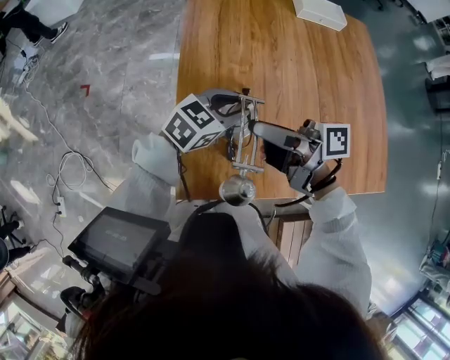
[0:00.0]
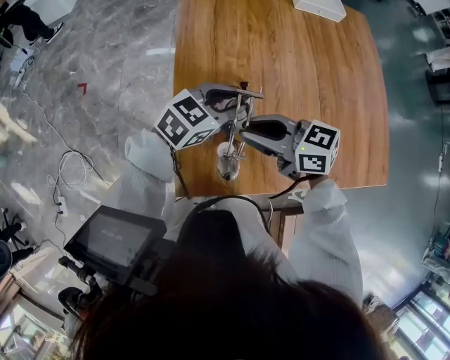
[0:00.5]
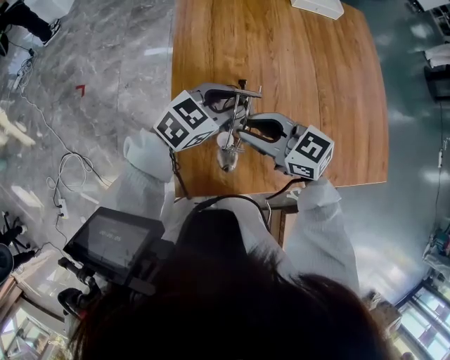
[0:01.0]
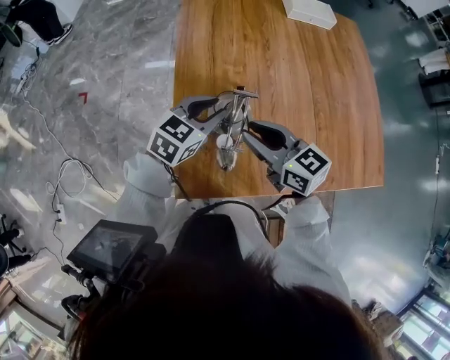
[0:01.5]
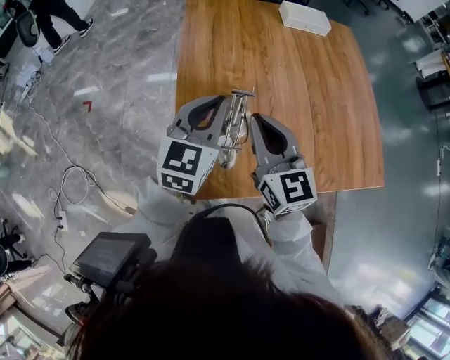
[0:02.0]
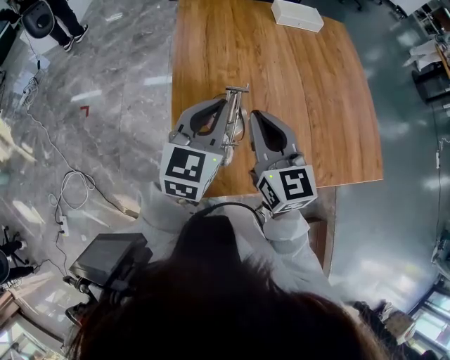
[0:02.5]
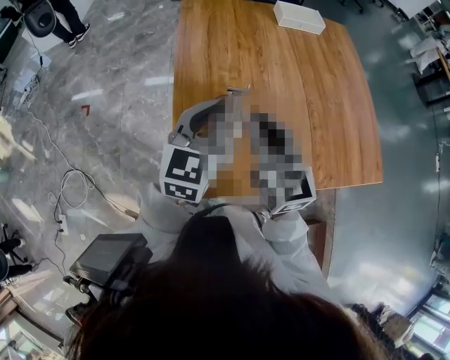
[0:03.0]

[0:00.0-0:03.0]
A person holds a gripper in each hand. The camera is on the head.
0:00.0 to 0:01.5: The right gripper moves downward, approximately 5 cm, and rolls counterclockwise, seen from behind, by about 50 degrees.
0:01.5 to 0:03.0: Both grippers travel together upward, roughly 10 cm. The left gripper swivels about 30 degrees, and closes up. The right gripper turns by approximately 30 degrees, and closes.

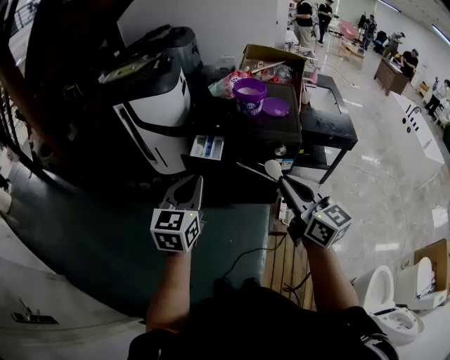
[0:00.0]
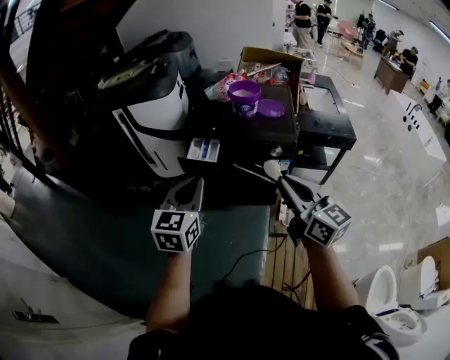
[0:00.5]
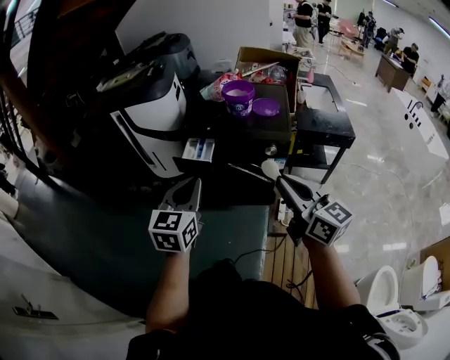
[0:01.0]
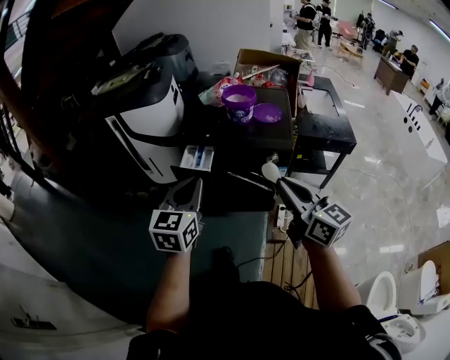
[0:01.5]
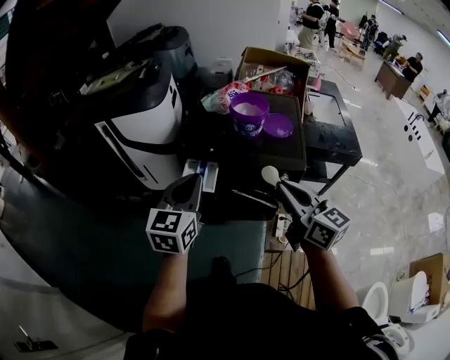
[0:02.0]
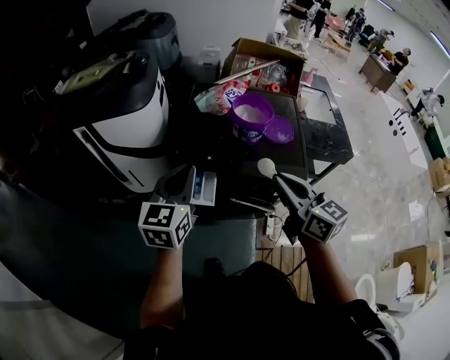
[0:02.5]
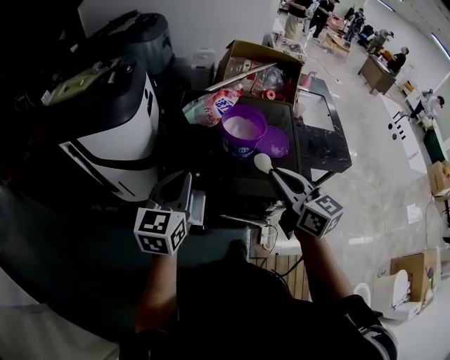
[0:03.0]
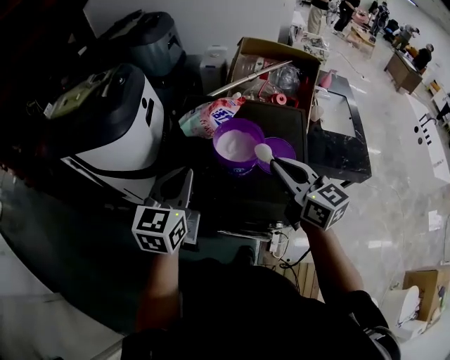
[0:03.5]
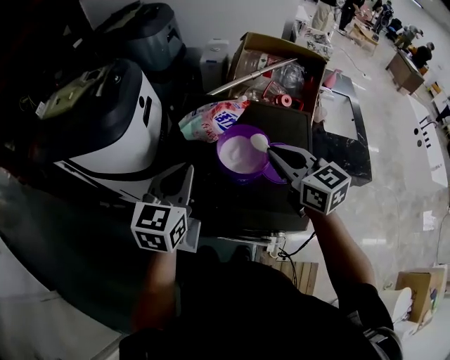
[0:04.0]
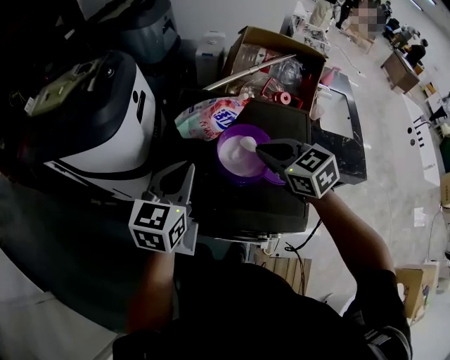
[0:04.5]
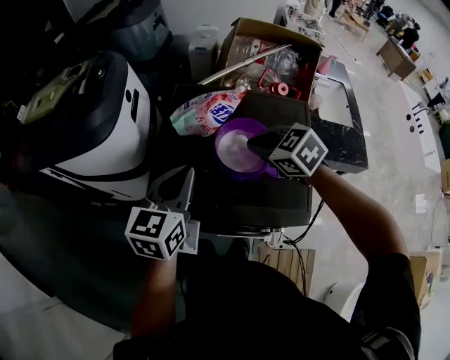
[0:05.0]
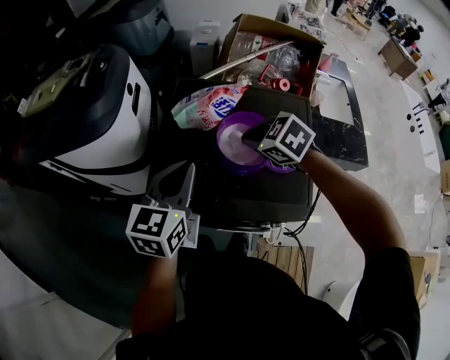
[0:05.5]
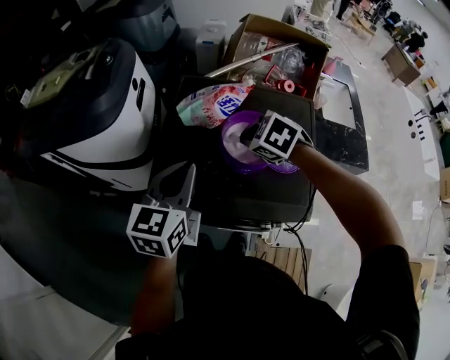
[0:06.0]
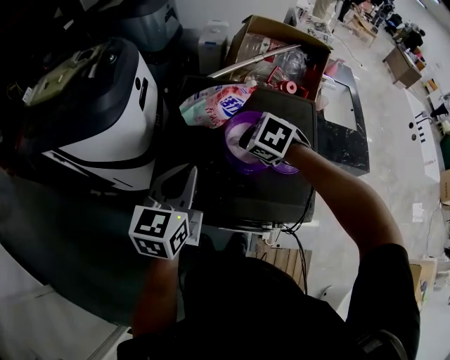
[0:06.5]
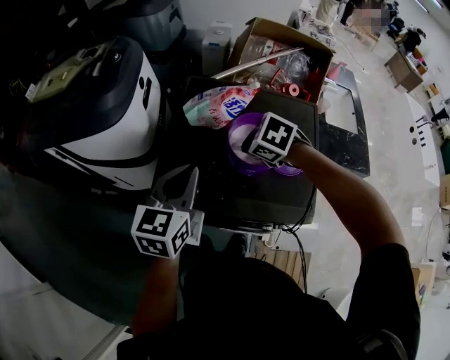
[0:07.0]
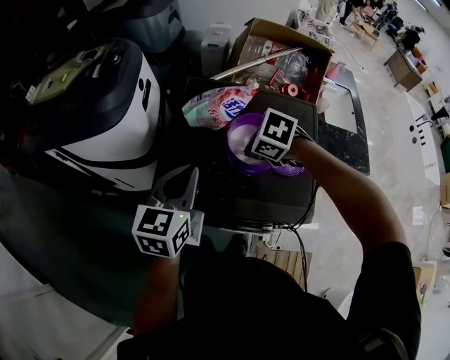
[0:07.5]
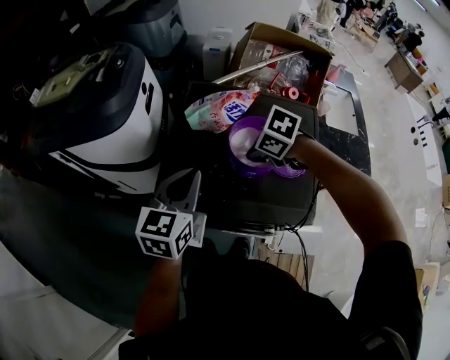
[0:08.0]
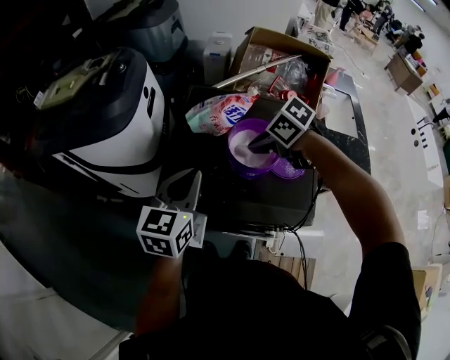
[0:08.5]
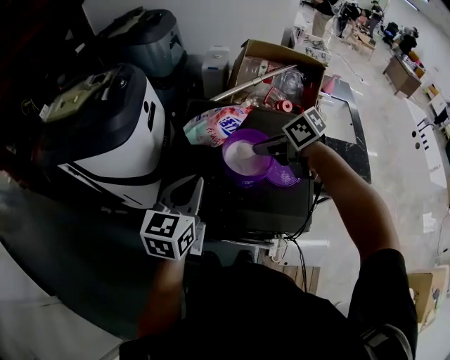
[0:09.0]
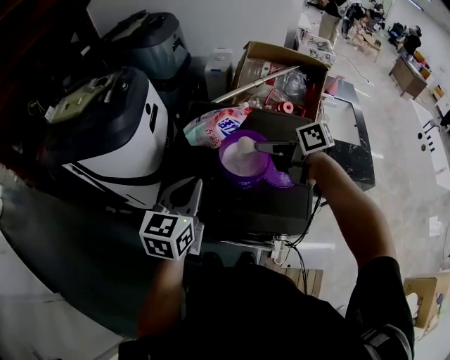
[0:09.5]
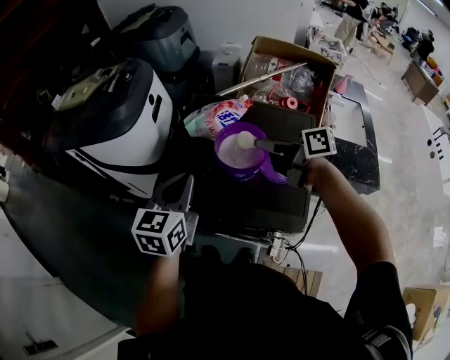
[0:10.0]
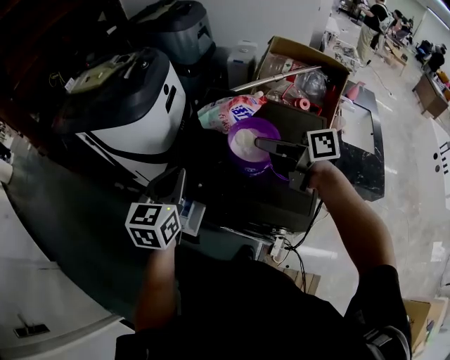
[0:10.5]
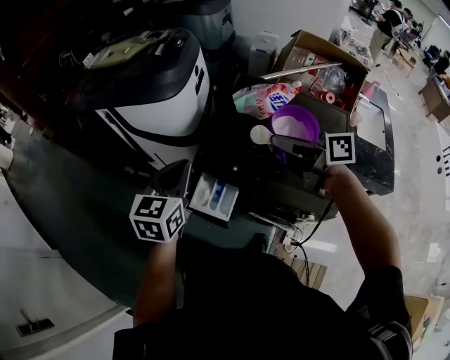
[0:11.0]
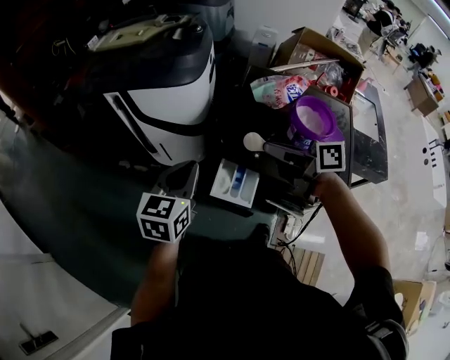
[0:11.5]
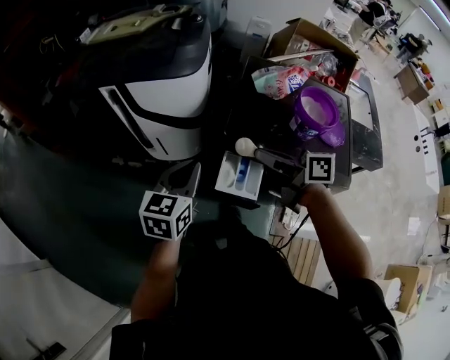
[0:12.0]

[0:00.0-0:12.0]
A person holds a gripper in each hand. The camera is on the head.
0:00.0 to 0:02.0: The grippers both shift forward by roughly 20 cm.
0:02.0 to 0:04.0: Both grippers travel together forward, roughly 35 cm.
0:04.0 to 0:06.0: The right gripper heads downward, forward and to the left, covering approximately 15 cm, and angles its fingers downward, by approximately 50 degrees.
0:06.0 to 0:08.0: The right gripper changes its angle by about 20 degrees.
0:08.0 to 0:10.0: The right gripper moves upward and to the right, approximately 10 cm, and tips its fingers upward by some 50 degrees. Meanwhile the left gripper changes place by approximately 5 cm.
0:10.0 to 0:12.0: Both grippers travel together to the left, about 30 cm.

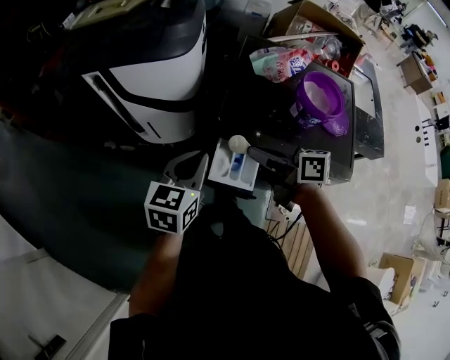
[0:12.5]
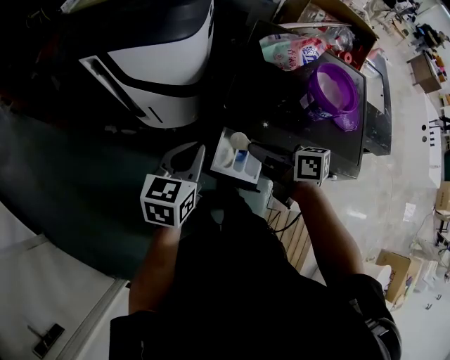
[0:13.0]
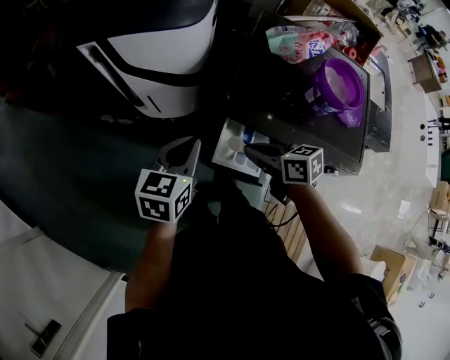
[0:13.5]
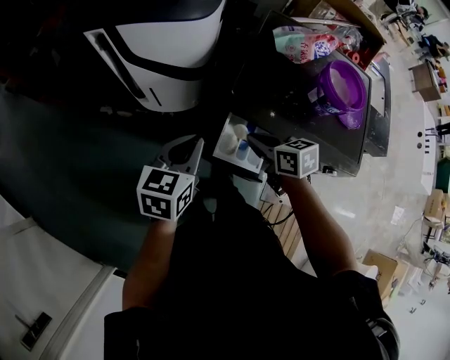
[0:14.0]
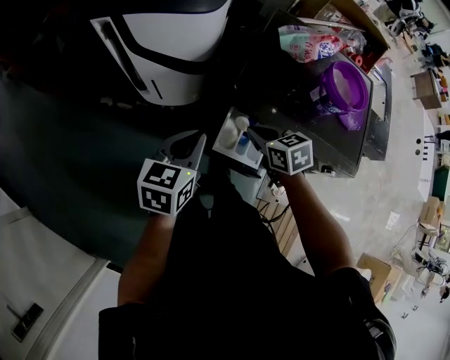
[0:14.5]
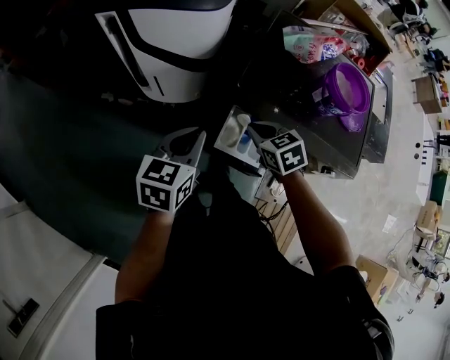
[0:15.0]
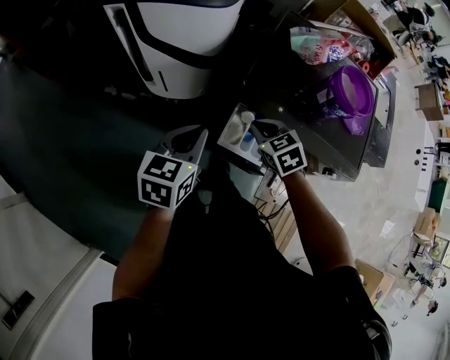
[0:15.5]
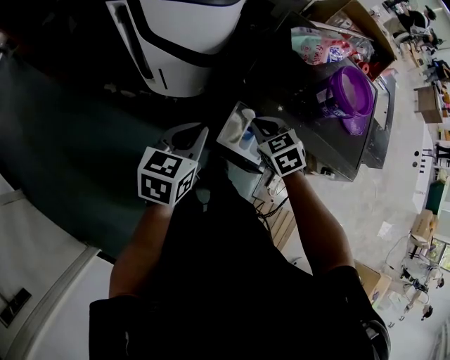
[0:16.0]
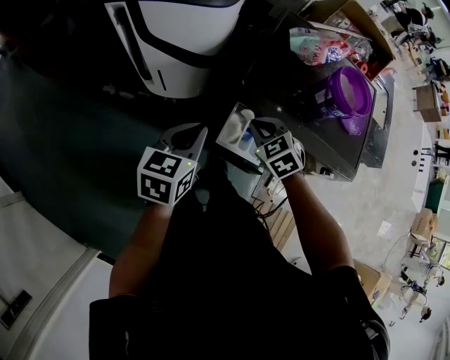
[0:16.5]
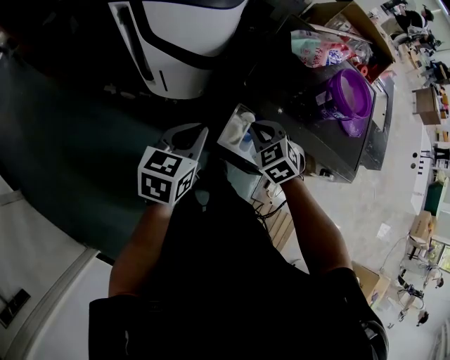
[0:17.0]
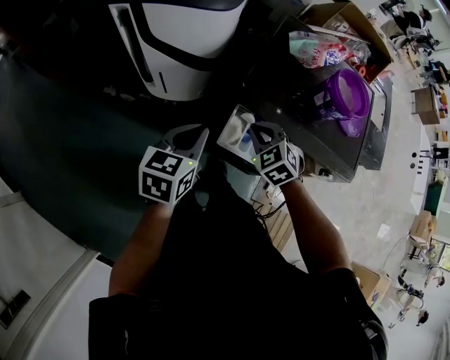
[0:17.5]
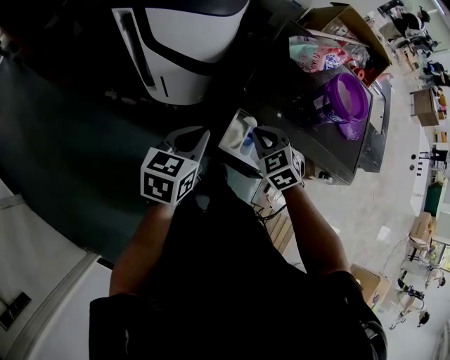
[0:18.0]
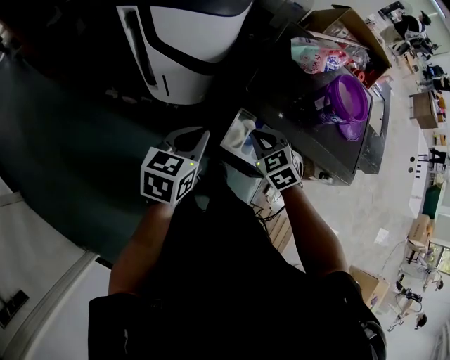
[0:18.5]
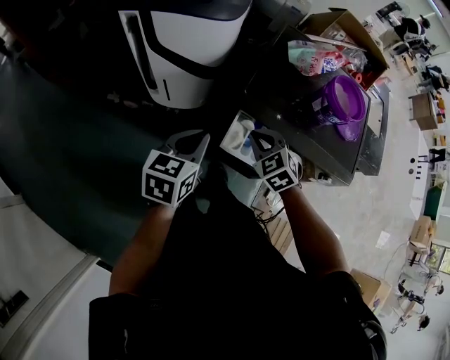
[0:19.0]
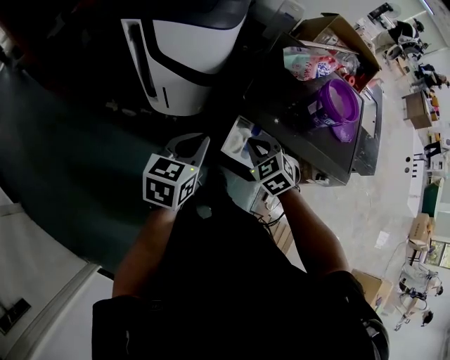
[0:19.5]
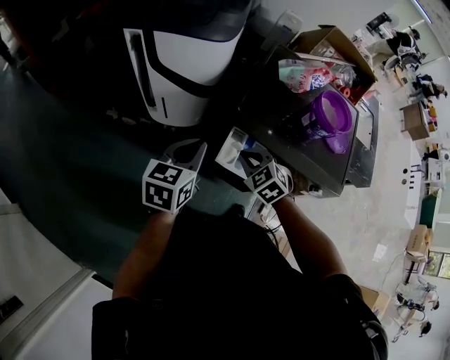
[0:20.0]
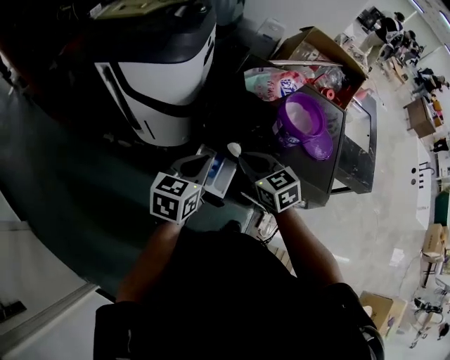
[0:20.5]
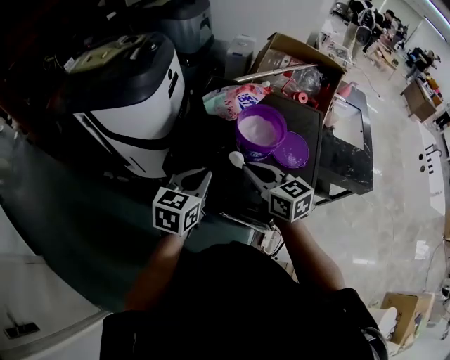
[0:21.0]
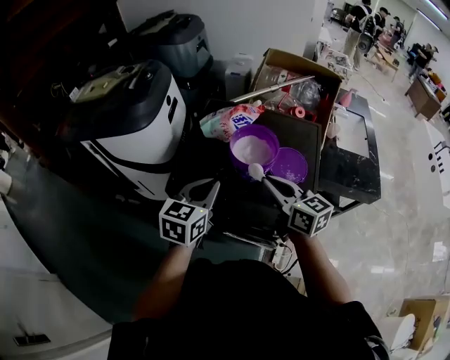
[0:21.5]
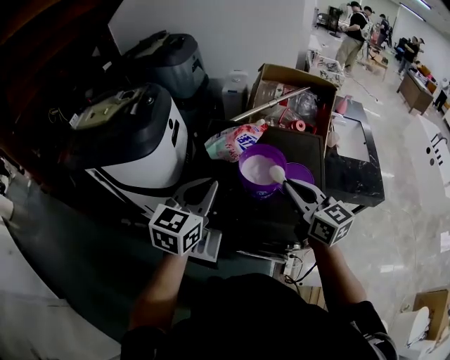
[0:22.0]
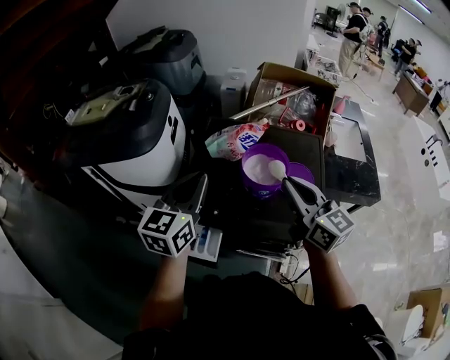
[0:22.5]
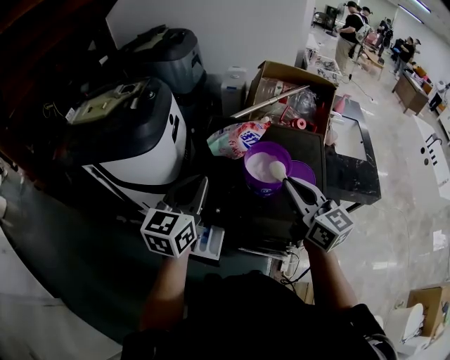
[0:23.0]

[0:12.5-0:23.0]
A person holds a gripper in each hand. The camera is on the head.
0:12.5 to 0:14.5: The right gripper shifts approximately 15 cm downward, and angles its fingers downward, by roughly 30 degrees. Meanwhile the left gripper shifts about 5 cm downward.
0:14.5 to 0:16.5: The right gripper turns by some 30 degrees.
0:16.5 to 0:19.0: The grippers make only small movements.
0:19.0 to 0:21.0: The left gripper goes approximately 25 cm to the right; the right gripper heads to the right and upward, covering about 30 cm, and points its fingers about 30 degrees further upward.
0:21.0 to 0:23.0: The left gripper heads upward and forward, covering some 15 cm. Meanwhile the right gripper goes some 15 cm upward and to the right, and changes its angle by some 20 degrees.

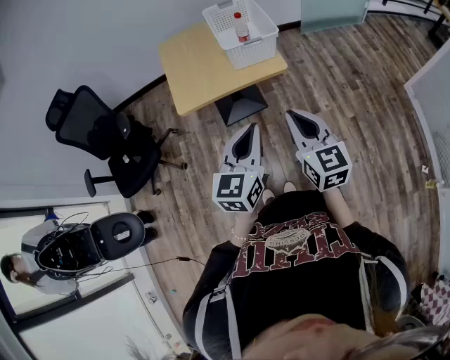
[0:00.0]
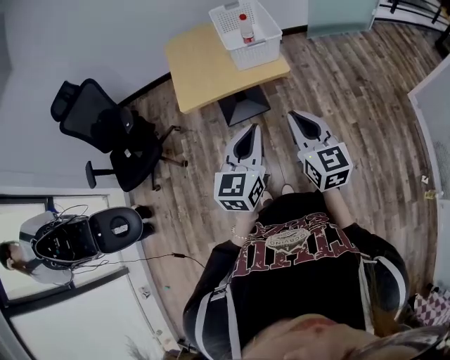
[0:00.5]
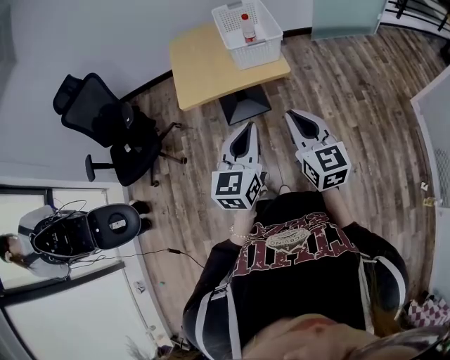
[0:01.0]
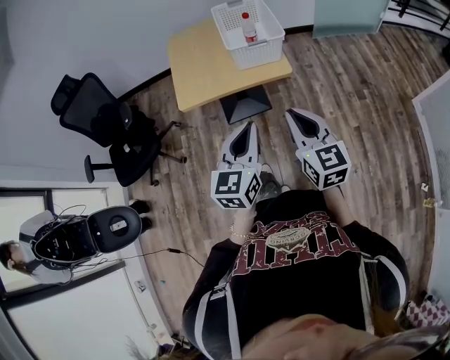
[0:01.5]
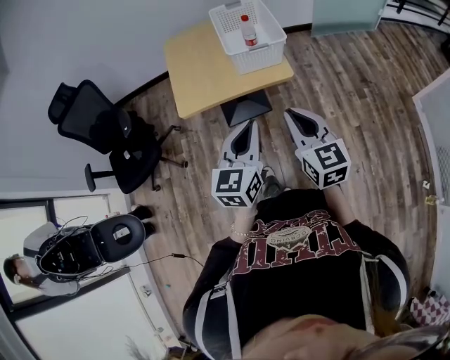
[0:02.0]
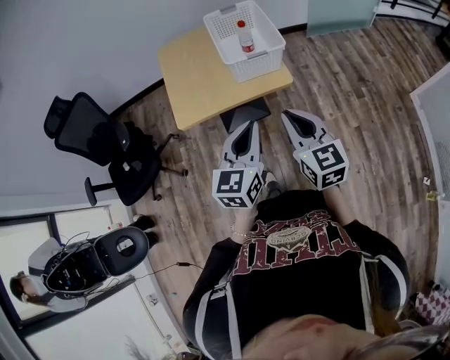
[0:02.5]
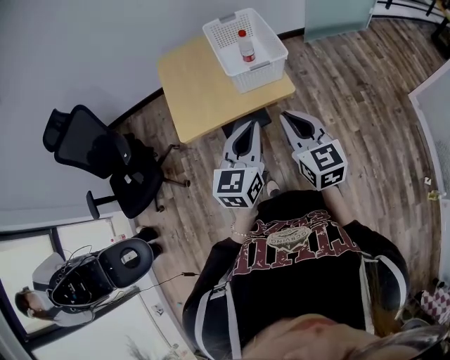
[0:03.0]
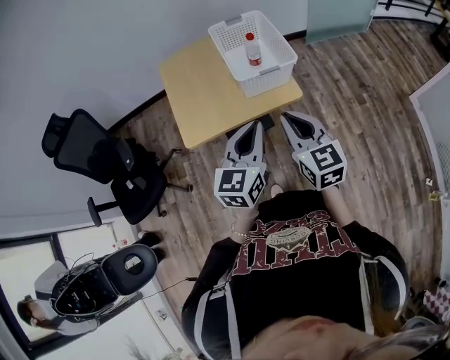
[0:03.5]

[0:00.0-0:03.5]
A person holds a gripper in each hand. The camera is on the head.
0:00.0 to 0:02.0: The two grippers go some 10 cm forward.
0:02.0 to 0:03.5: The left gripper travels forward by roughly 10 cm; the right gripper heads forward and to the left, covering roughly 10 cm.
